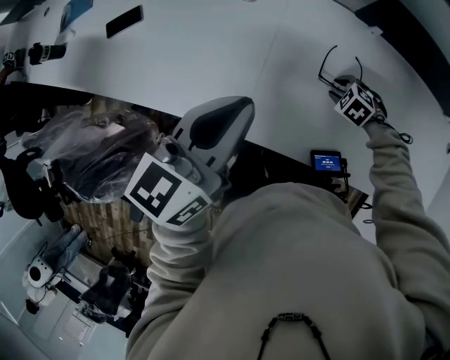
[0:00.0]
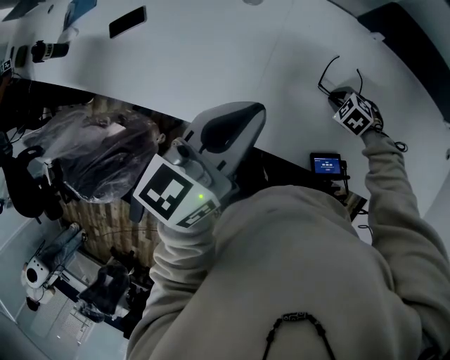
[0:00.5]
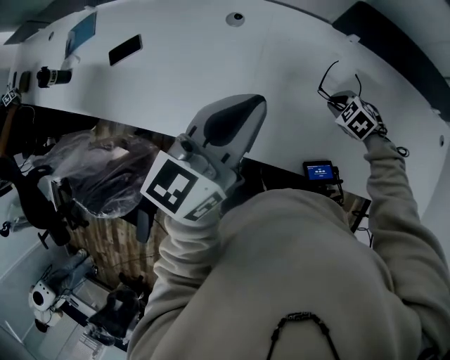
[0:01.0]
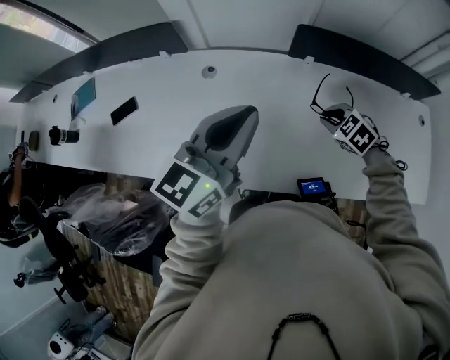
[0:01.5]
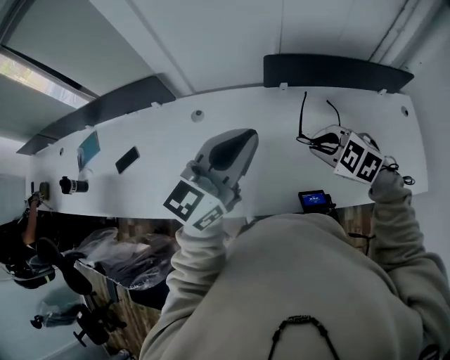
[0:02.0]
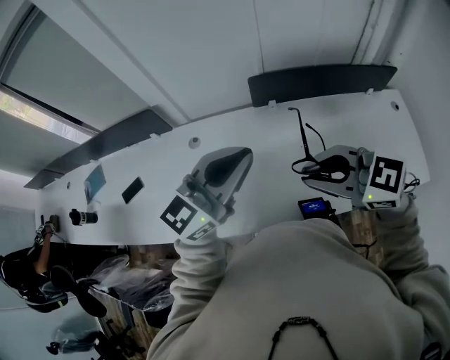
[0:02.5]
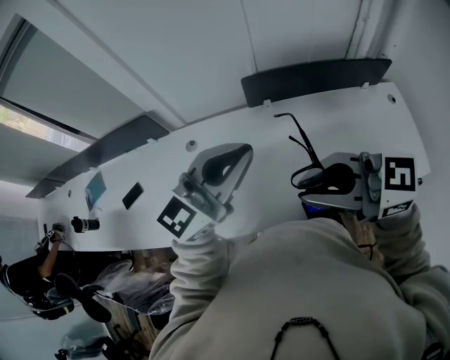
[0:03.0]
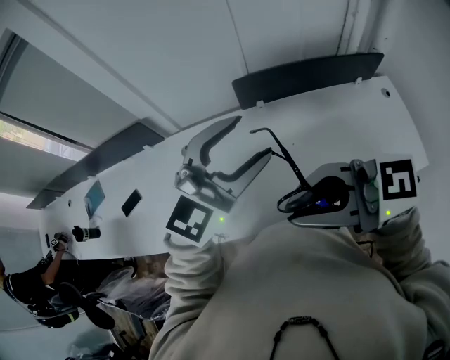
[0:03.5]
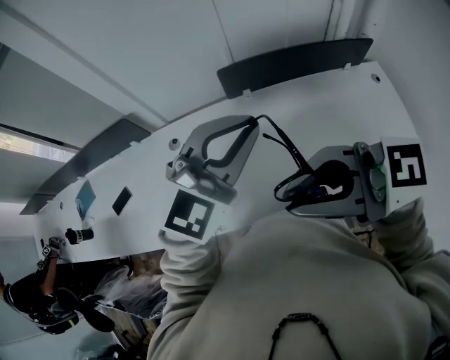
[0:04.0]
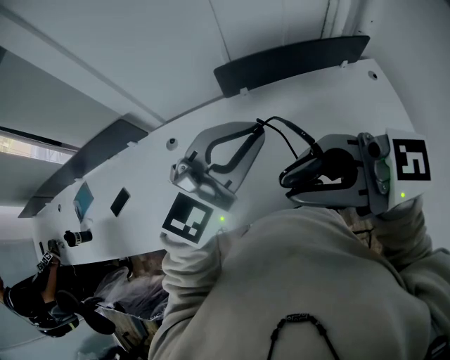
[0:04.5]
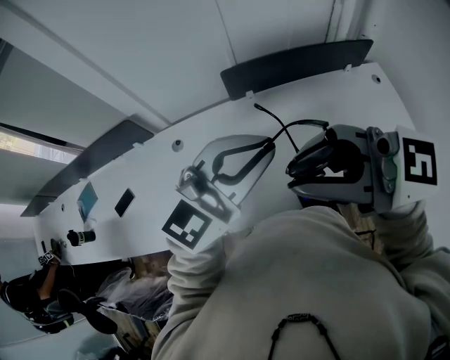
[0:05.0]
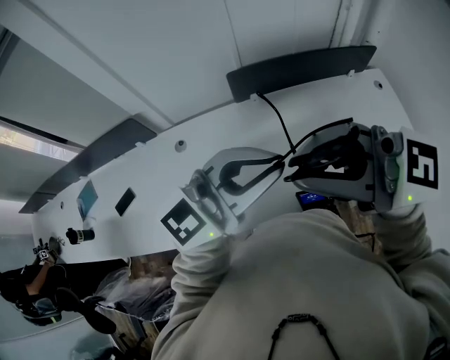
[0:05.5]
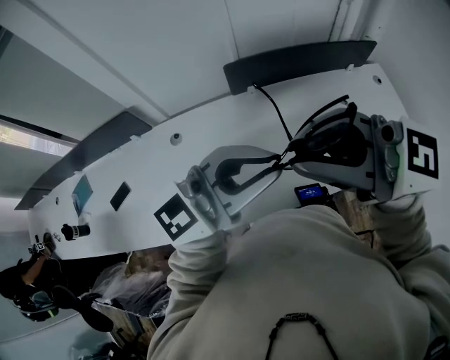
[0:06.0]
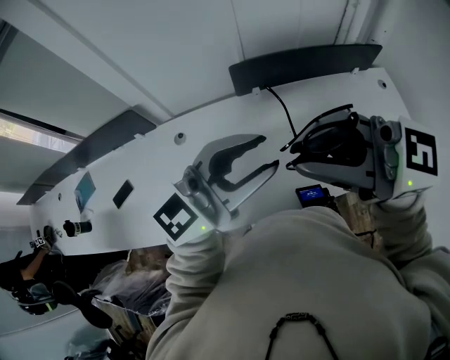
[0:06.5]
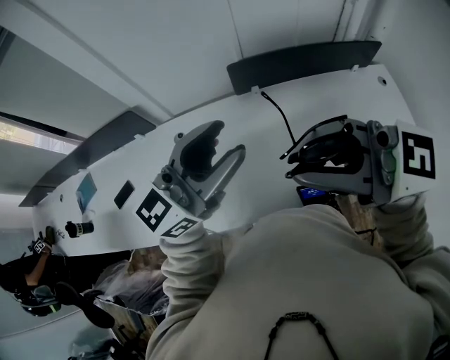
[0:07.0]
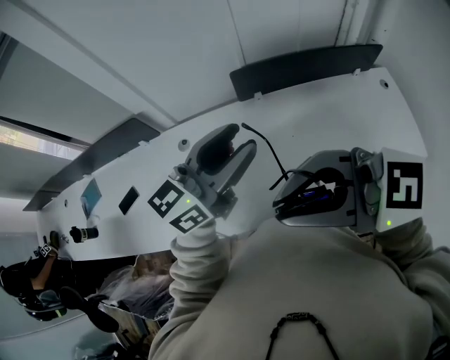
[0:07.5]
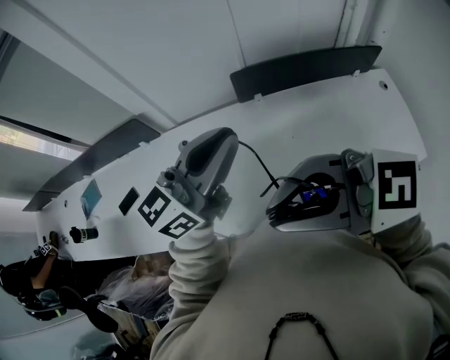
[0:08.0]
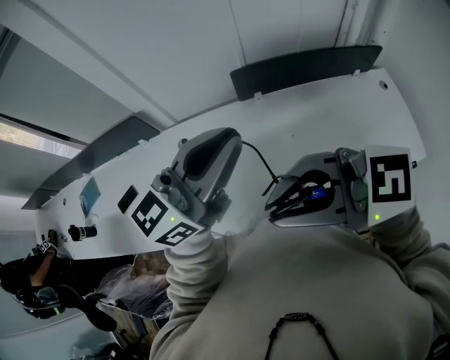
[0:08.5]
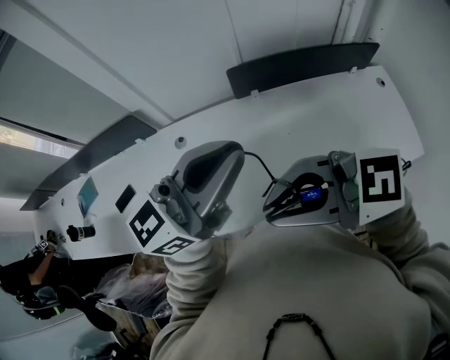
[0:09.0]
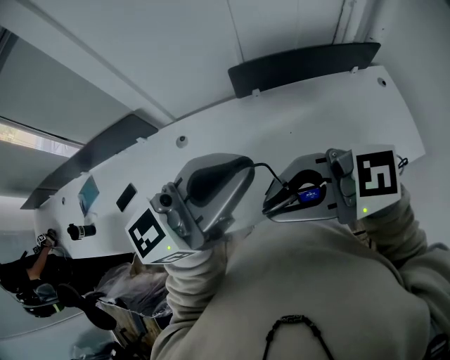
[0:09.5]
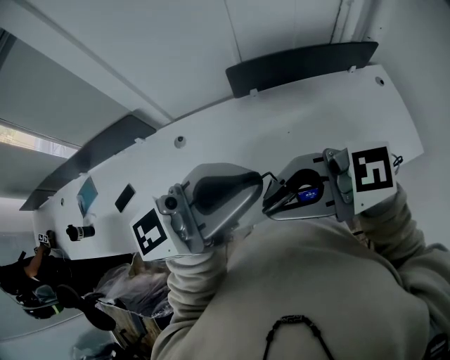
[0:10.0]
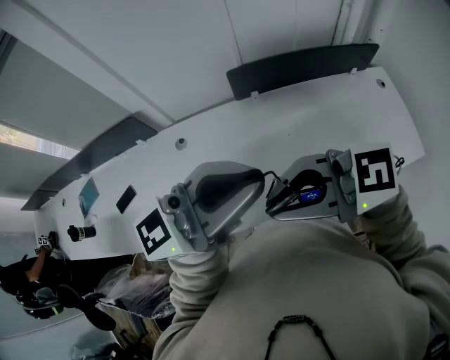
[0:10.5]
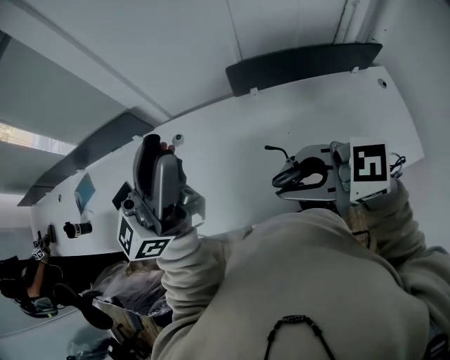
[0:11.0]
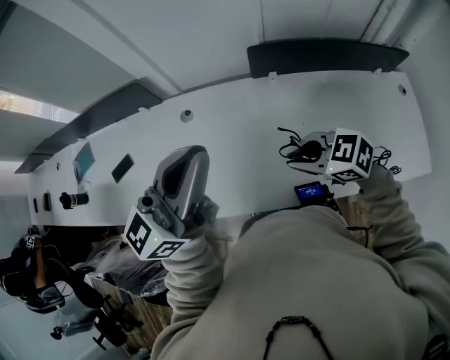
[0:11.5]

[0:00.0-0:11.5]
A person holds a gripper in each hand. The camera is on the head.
0:00.0 to 0:02.0: The left gripper shifts by approximately 20 cm, and rotates approximately 40 degrees. Meanwhile the right gripper heads upward, covering roughly 30 cm, and swivels some 30 degrees.
0:02.0 to 0:04.0: The left gripper changes place by roughly 10 cm, turns by some 40 degrees, and opens, then closes once more. Meanwhile the right gripper moves upward, approximately 25 cm, and angles its fingers upward, by approximately 50 degrees.
0:04.0 to 0:06.0: The left gripper shifts by about 10 cm, and swivels about 40 degrees. Meanwhile the right gripper changes place by approximately 5 cm.
0:06.0 to 0:07.5: The left gripper moves roughly 10 cm, swivels approximately 30 degrees, and opens its fingers. Meanwhile the right gripper shifts by about 5 cm.
0:07.5 to 0:09.5: The right gripper changes place by roughly 5 cm. Meanwhile the left gripper moves about 10 cm, and closes.
0:09.5 to 0:11.5: The right gripper travels downward by some 20 cm, and rotates approximately 30 degrees; the left gripper ends up approximately 10 cm from where it was, turns by roughly 30 degrees, and opens, then closes once more.

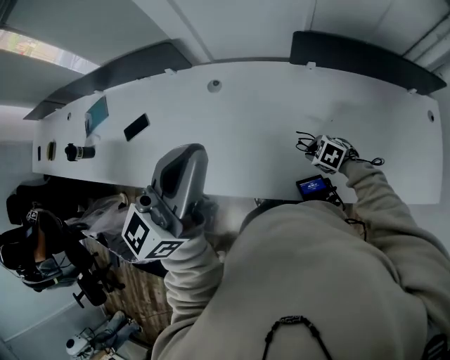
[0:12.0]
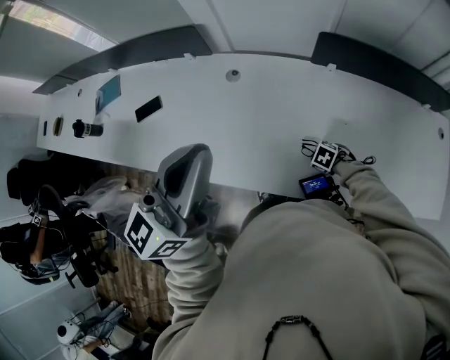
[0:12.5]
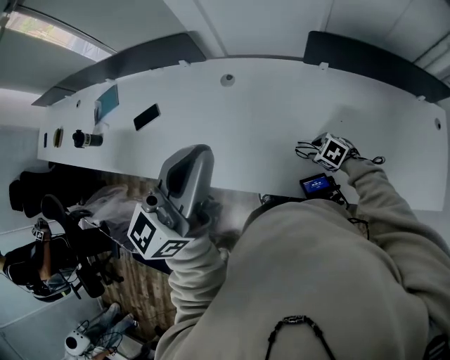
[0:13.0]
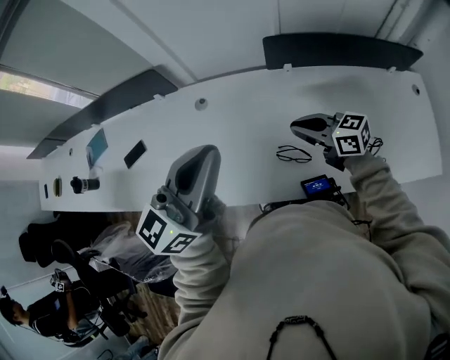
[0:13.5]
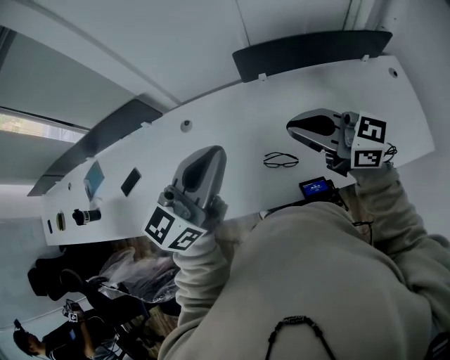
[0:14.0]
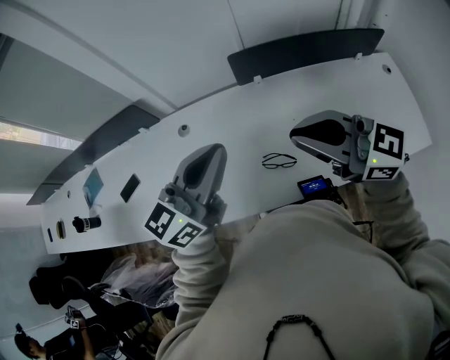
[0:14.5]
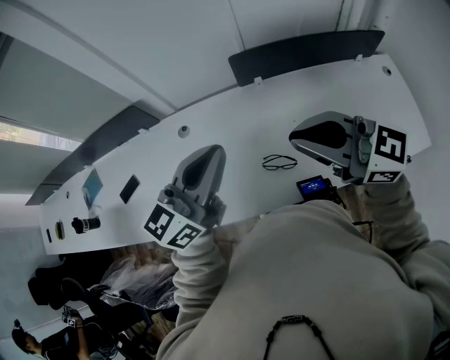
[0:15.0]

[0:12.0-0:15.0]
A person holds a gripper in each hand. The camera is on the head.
0:12.0 to 0:13.5: The right gripper moves upward, approximately 20 cm, points its fingers some 50 degrees further upward, and opens, then closes again, while the left gripper shifts by roughly 5 cm.
0:13.5 to 0:15.0: The right gripper shifts about 25 cm upward and backward, and turns by roughly 30 degrees, while the left gripper shifts approximately 5 cm to the right.

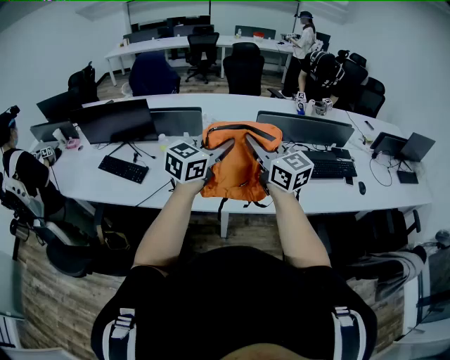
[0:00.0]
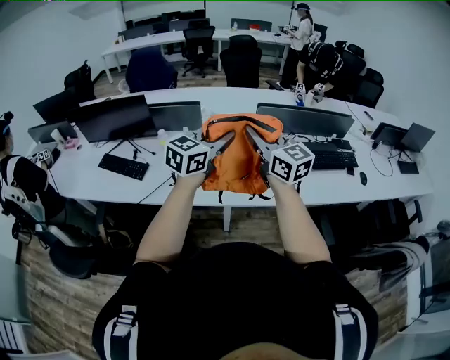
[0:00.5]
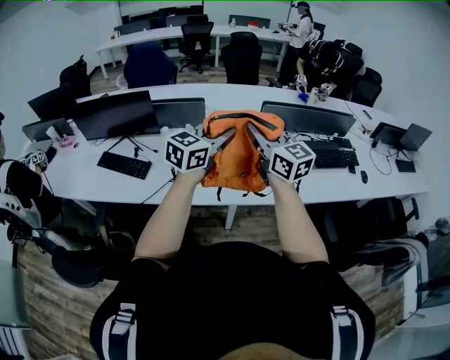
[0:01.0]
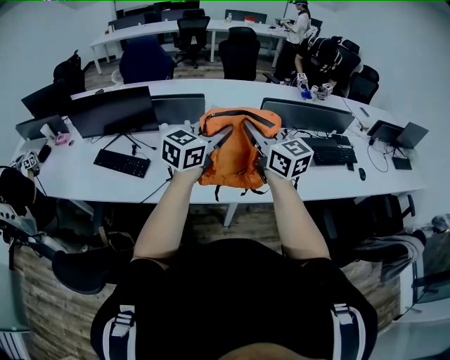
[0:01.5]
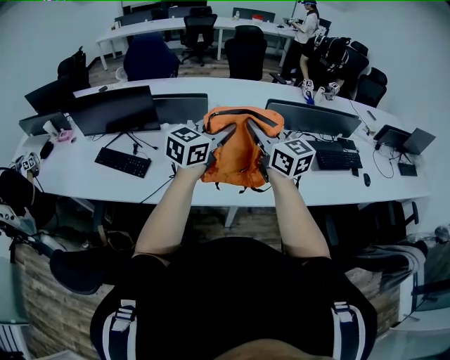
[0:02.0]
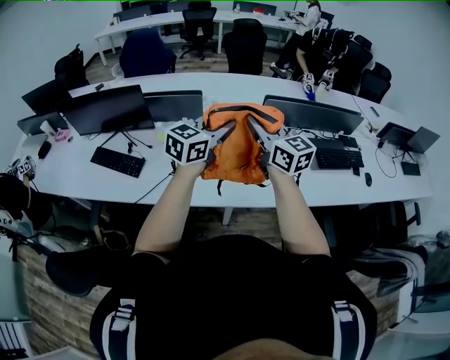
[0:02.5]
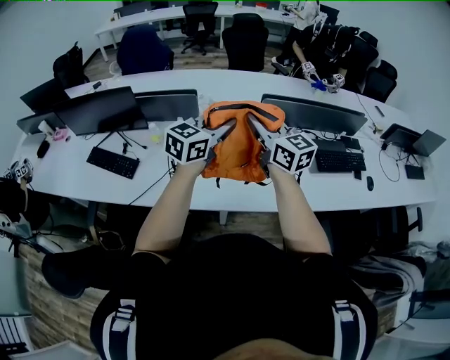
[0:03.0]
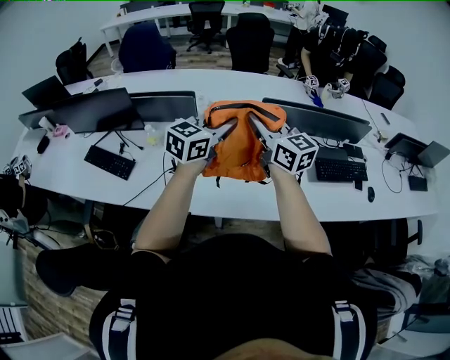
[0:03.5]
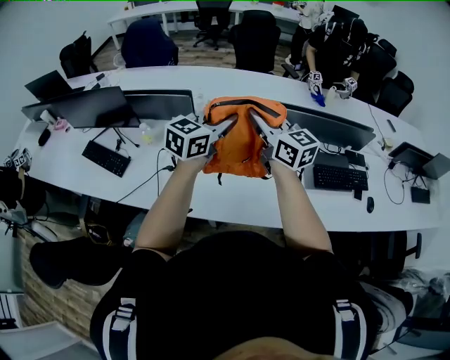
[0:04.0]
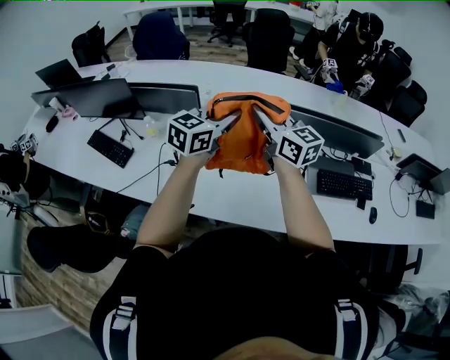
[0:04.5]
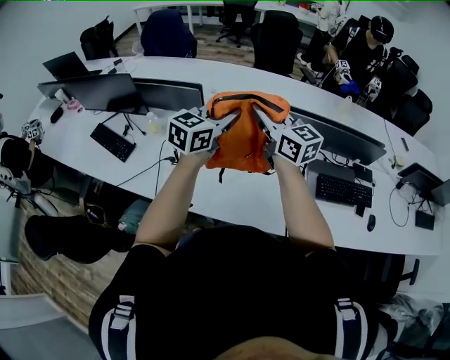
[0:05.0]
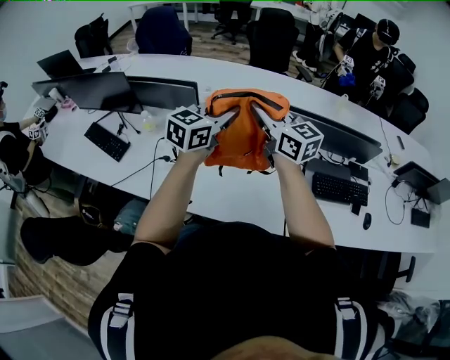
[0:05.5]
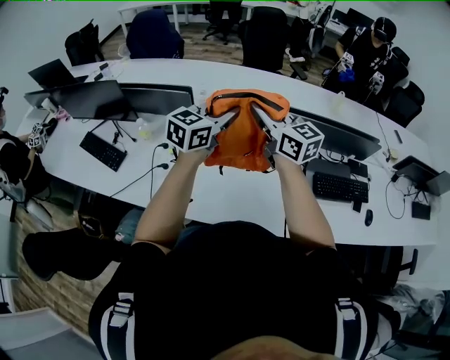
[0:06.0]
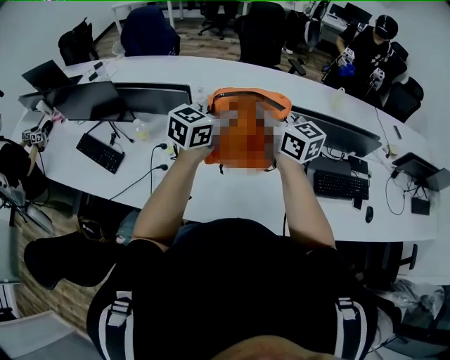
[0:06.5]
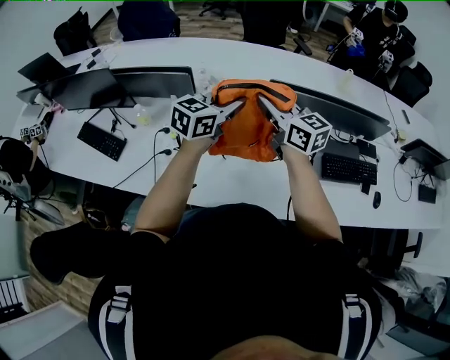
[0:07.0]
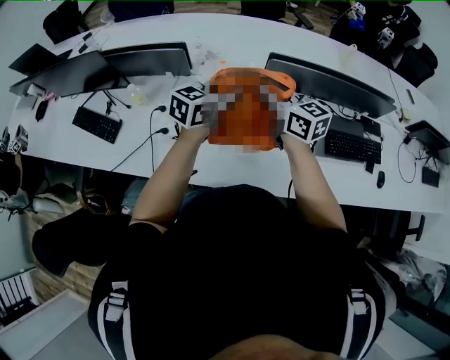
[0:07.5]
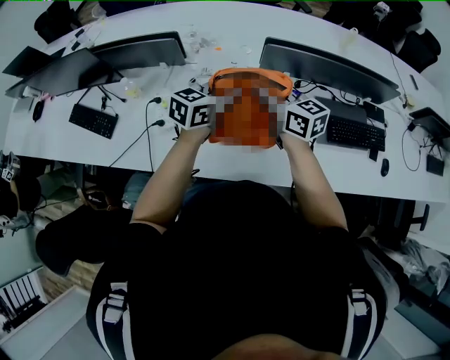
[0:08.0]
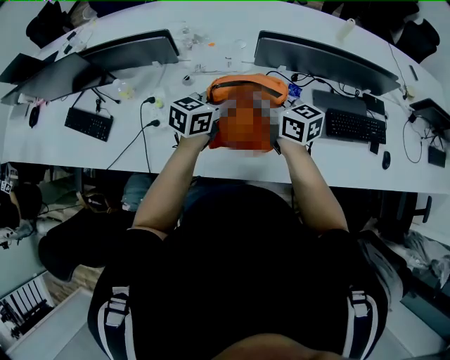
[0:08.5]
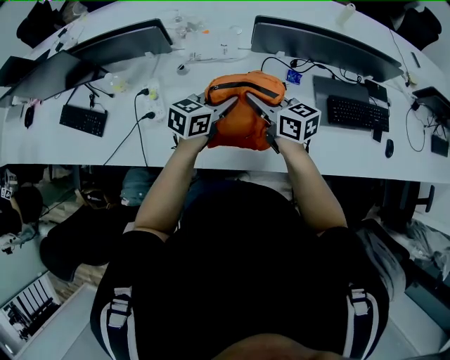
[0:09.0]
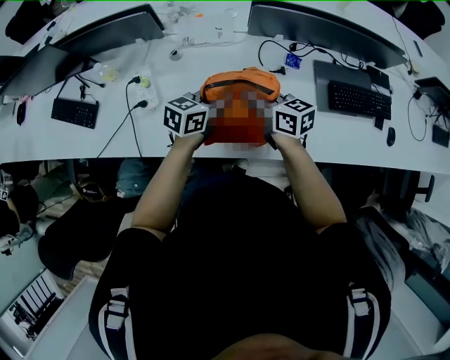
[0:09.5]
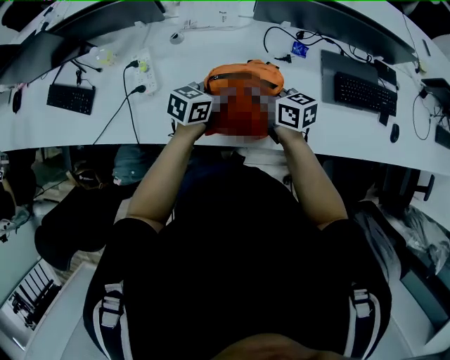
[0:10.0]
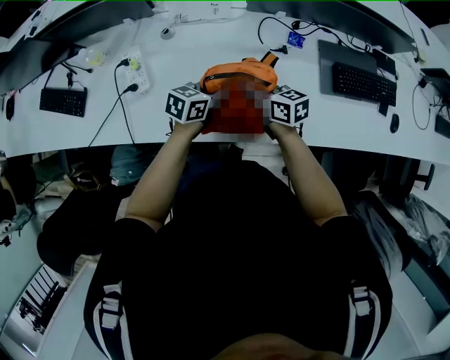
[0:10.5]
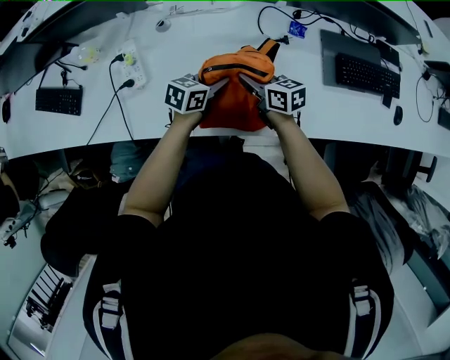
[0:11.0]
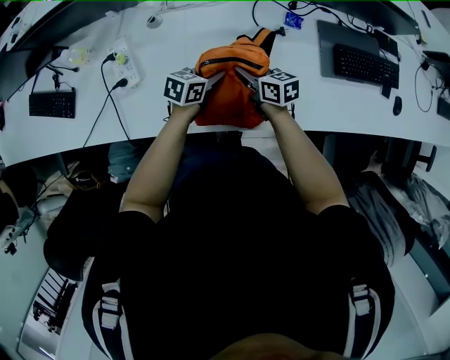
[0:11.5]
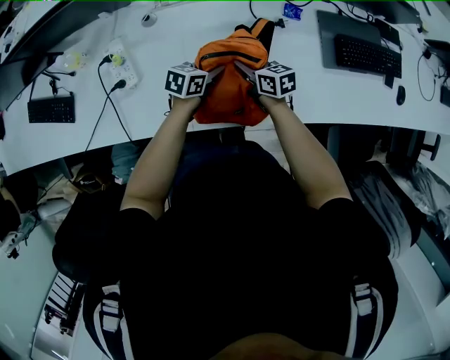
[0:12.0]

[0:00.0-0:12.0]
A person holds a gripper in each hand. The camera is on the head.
0:00.0 to 0:02.0: The grippers both shift to the left and forward by some 10 cm.
0:02.0 to 0:04.0: Both grippers travel together forward and to the right, some 25 cm.
0:04.0 to 0:06.0: The grippers both shift forward by approximately 5 cm.
0:06.0 to 0:08.0: Both grippers travel together downward, about 15 cm.
0:08.0 to 0:10.0: The two grippers go approximately 20 cm downward.
0:10.0 to 0:12.0: Both grippers move downward, some 15 cm.
